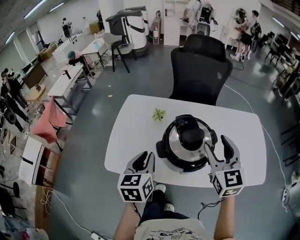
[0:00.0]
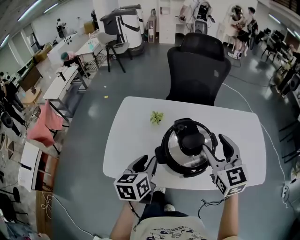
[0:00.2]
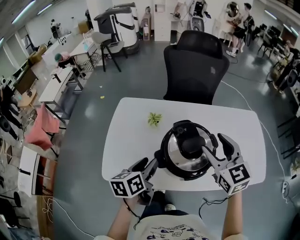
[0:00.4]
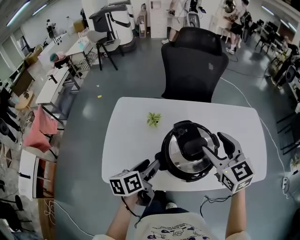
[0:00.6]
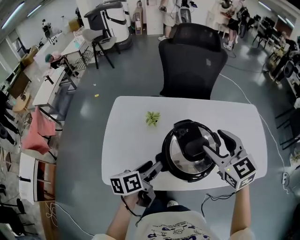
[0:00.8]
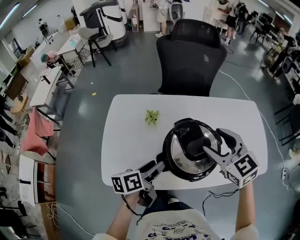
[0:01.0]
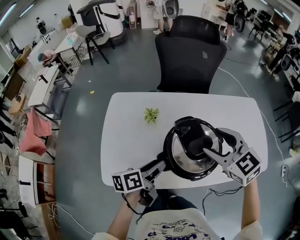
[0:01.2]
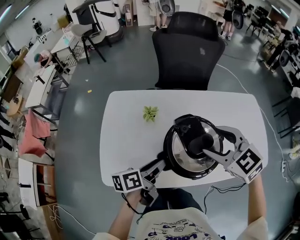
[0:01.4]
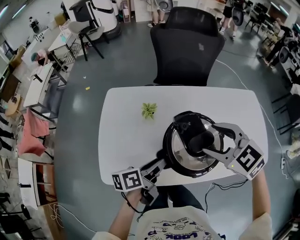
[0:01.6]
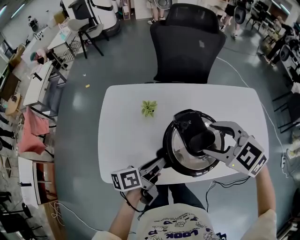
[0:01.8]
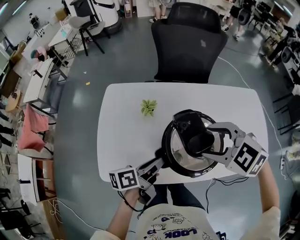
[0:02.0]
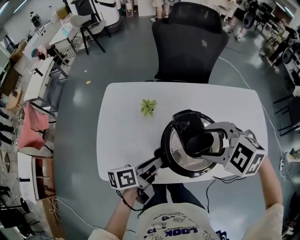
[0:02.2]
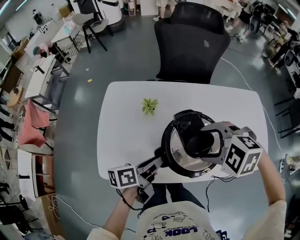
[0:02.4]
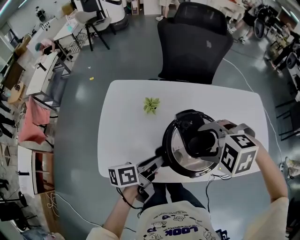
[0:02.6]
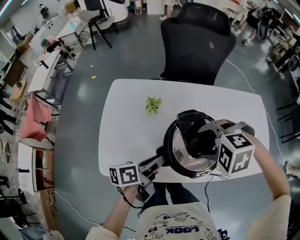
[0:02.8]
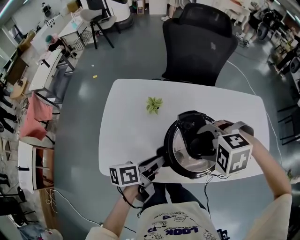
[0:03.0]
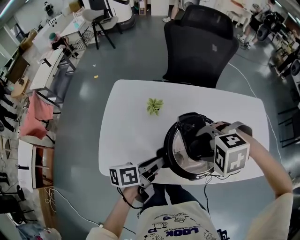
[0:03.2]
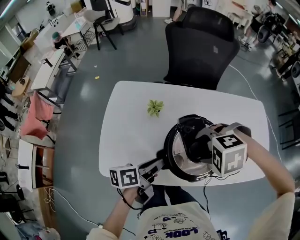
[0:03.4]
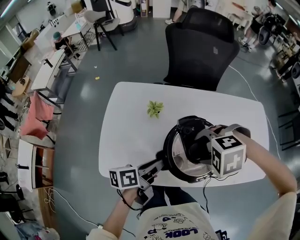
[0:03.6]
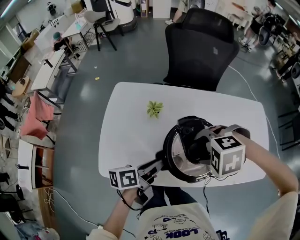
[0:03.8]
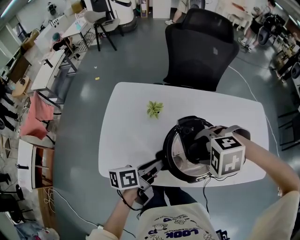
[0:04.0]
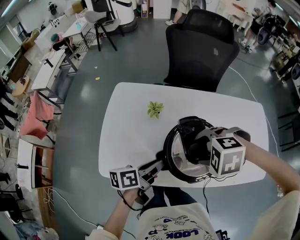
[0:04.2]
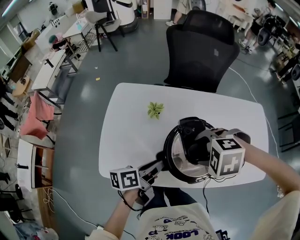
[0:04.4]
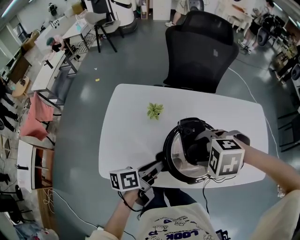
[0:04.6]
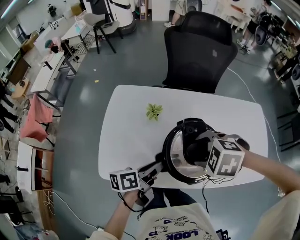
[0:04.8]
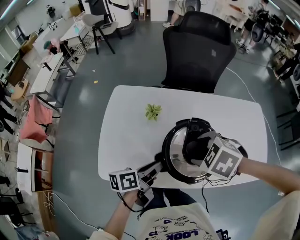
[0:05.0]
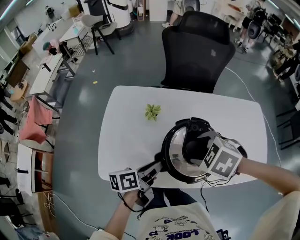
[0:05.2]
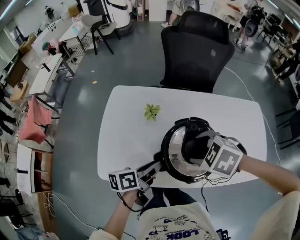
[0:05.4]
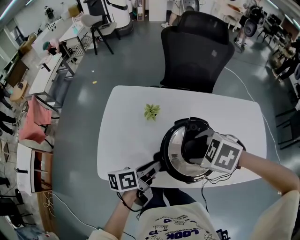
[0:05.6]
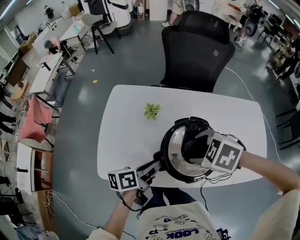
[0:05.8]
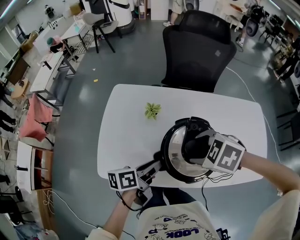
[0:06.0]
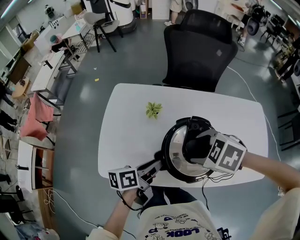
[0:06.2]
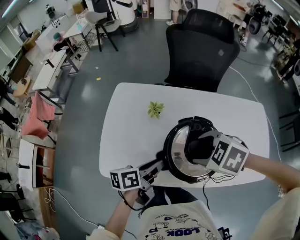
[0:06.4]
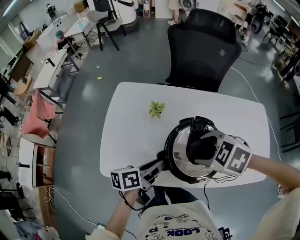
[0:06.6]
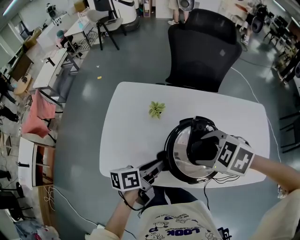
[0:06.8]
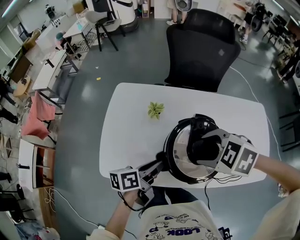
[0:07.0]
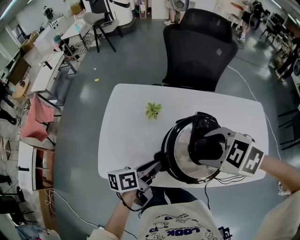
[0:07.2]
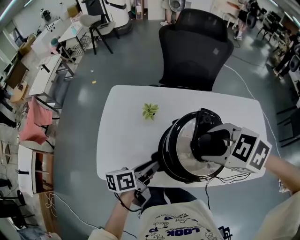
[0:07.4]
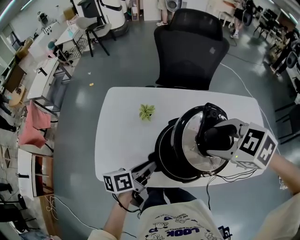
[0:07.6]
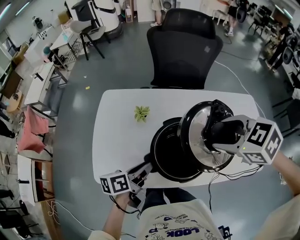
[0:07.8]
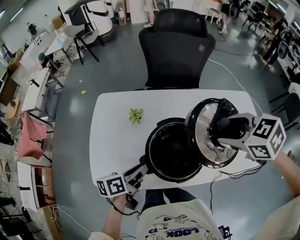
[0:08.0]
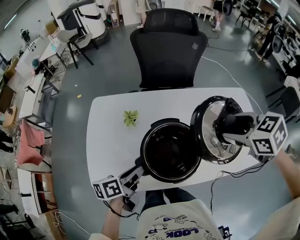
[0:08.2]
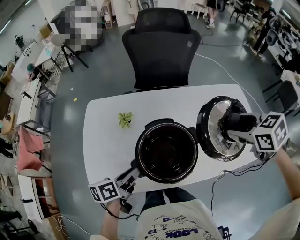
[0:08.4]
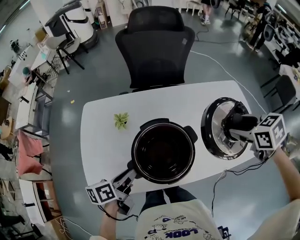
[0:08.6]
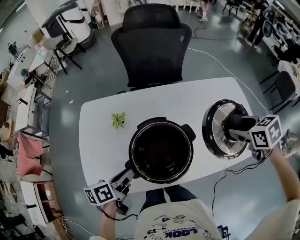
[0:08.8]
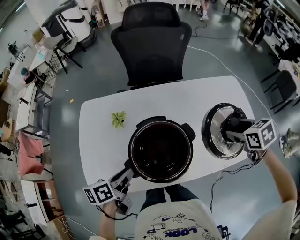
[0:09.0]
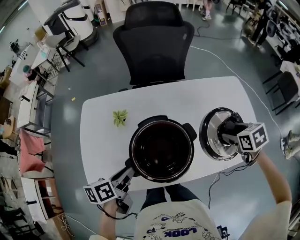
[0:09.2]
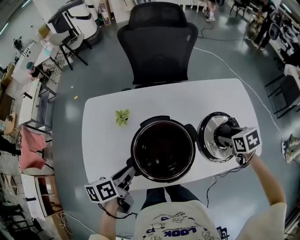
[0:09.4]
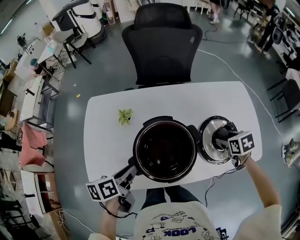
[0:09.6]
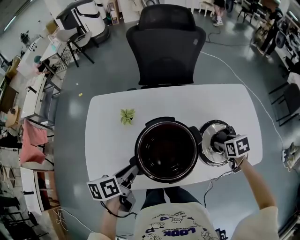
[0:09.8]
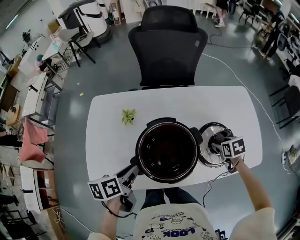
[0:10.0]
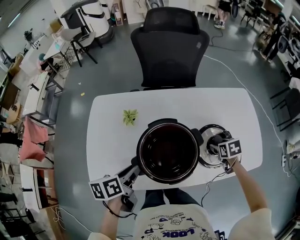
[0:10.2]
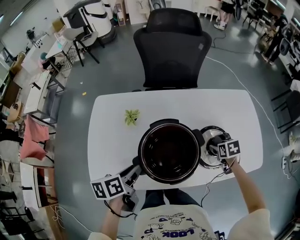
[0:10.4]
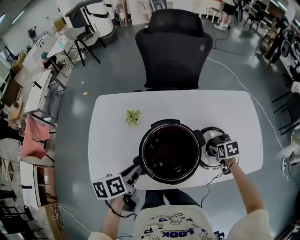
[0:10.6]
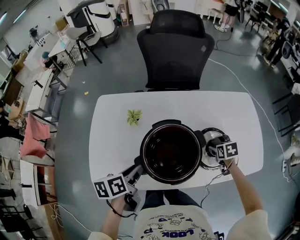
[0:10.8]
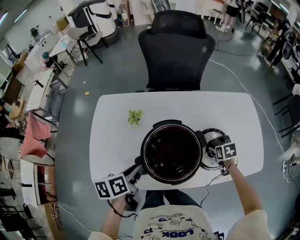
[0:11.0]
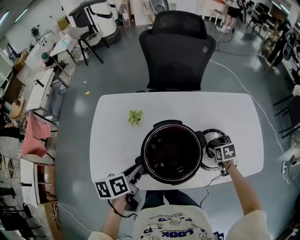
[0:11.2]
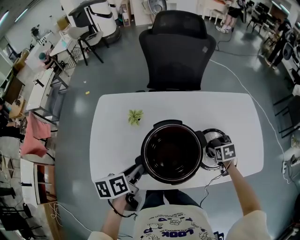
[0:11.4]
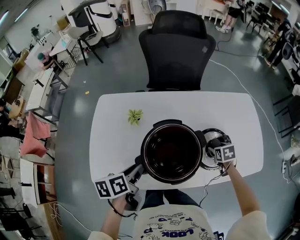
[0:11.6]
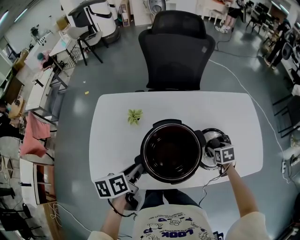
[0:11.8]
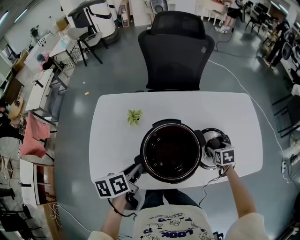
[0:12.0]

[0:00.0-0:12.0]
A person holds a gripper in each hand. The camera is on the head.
0:00.0 to 0:01.6: The left gripper travels downward and forward by roughly 15 cm, changes its angle by some 60 degrees, and opens up; the right gripper shifts some 10 cm forward, to the left and downward, and rotates about 40 degrees.
0:01.6 to 0:03.0: The right gripper heads downward, covering some 5 cm, and tips its fingers downward by approximately 30 degrees.
0:03.0 to 0:04.4: The grippers move only a little.
0:04.4 to 0:06.0: The right gripper turns by roughly 30 degrees.
0:06.0 to 0:07.6: The right gripper heads upward and to the right, covering about 10 cm.
0:07.6 to 0:09.0: The right gripper travels to the right by roughly 25 cm, and rolls clockwise, seen from behind, by roughly 40 degrees.
0:09.0 to 0:10.4: The right gripper heads downward, covering approximately 15 cm.
0:10.4 to 0:12.0: There are only small adjustments of the grippers.

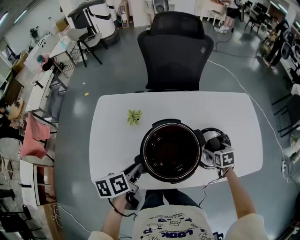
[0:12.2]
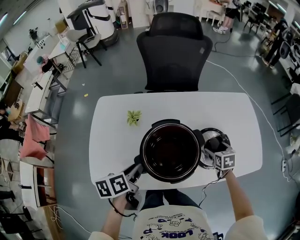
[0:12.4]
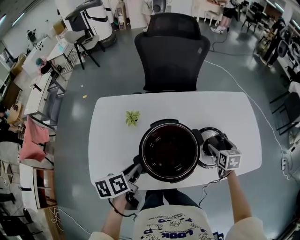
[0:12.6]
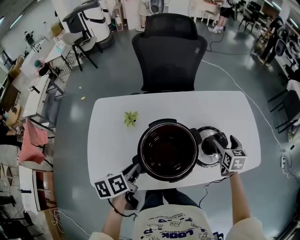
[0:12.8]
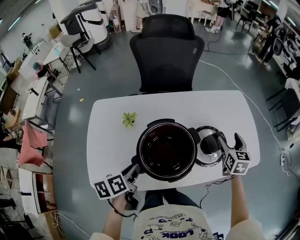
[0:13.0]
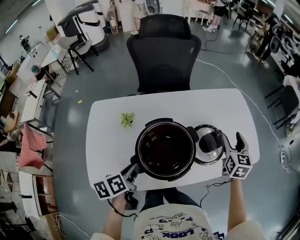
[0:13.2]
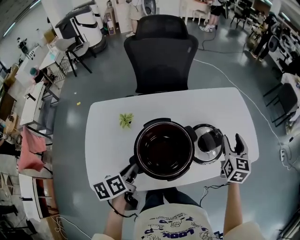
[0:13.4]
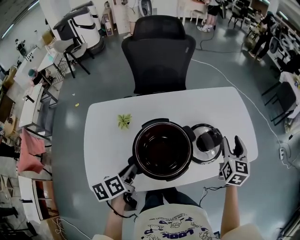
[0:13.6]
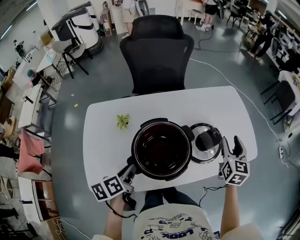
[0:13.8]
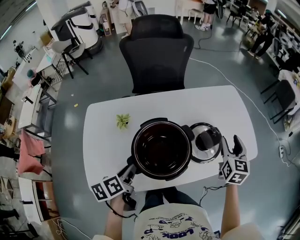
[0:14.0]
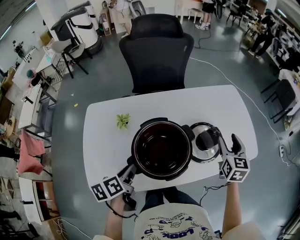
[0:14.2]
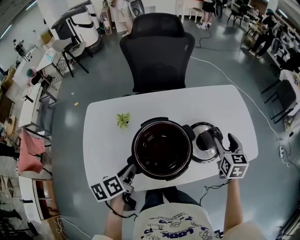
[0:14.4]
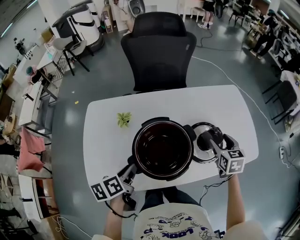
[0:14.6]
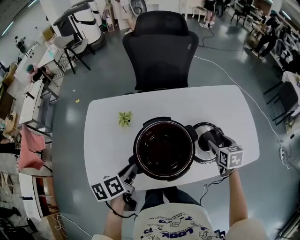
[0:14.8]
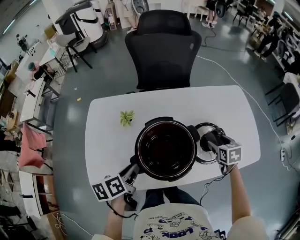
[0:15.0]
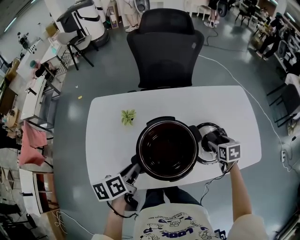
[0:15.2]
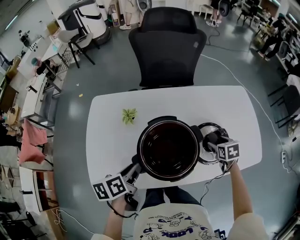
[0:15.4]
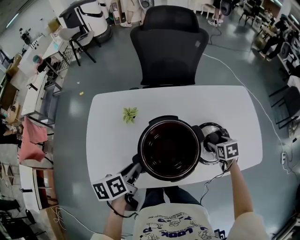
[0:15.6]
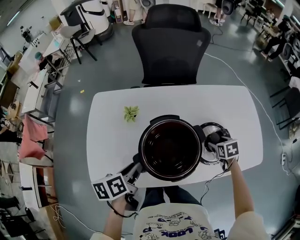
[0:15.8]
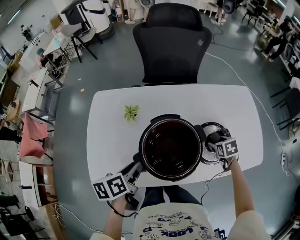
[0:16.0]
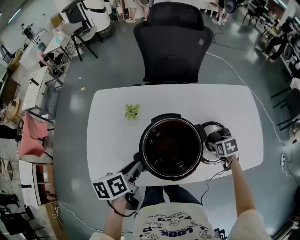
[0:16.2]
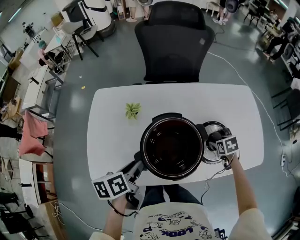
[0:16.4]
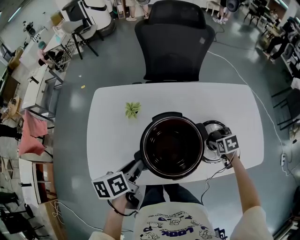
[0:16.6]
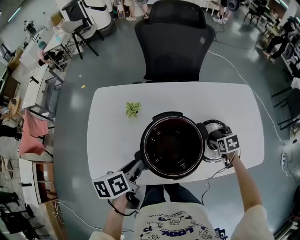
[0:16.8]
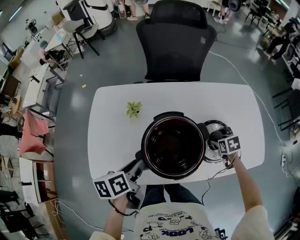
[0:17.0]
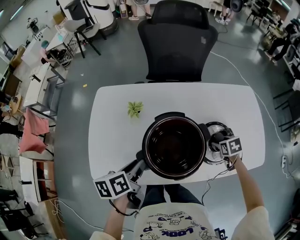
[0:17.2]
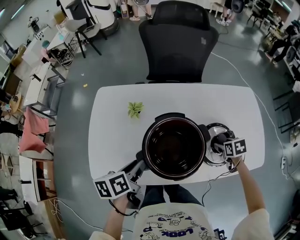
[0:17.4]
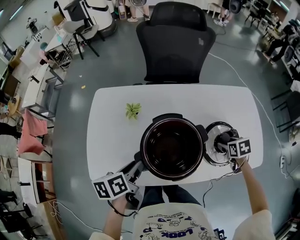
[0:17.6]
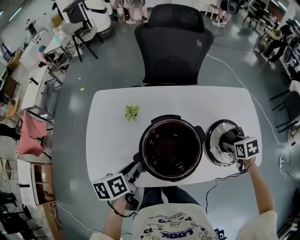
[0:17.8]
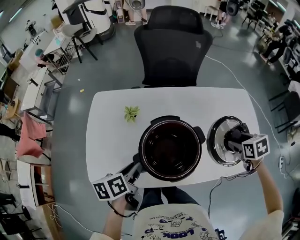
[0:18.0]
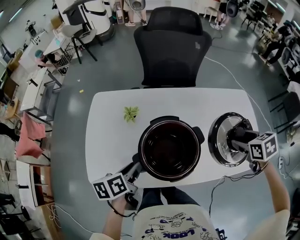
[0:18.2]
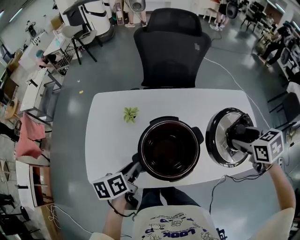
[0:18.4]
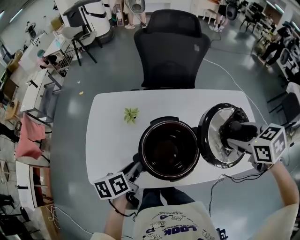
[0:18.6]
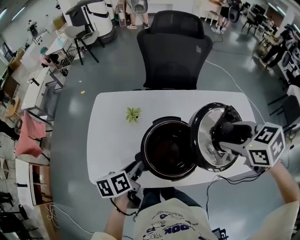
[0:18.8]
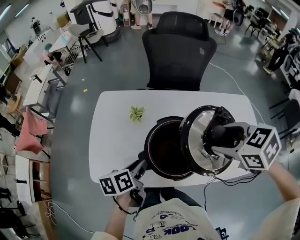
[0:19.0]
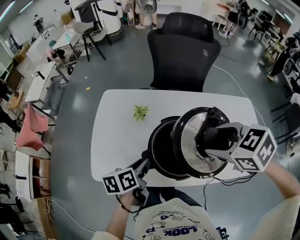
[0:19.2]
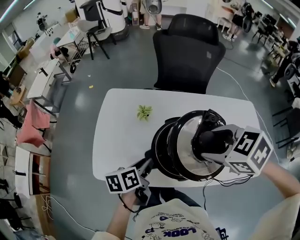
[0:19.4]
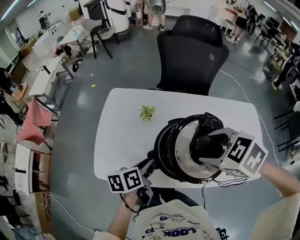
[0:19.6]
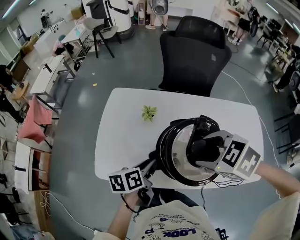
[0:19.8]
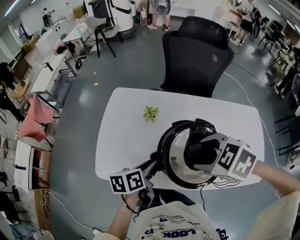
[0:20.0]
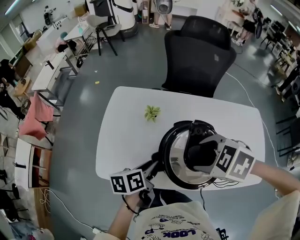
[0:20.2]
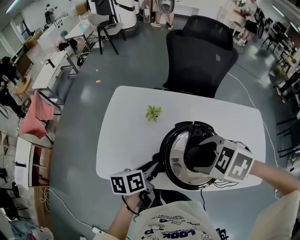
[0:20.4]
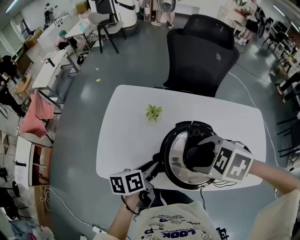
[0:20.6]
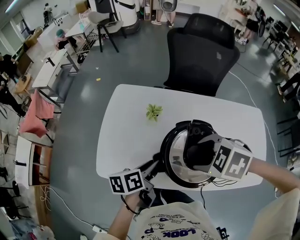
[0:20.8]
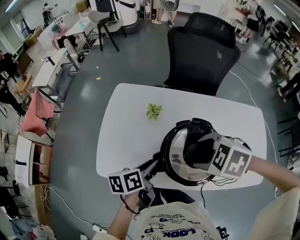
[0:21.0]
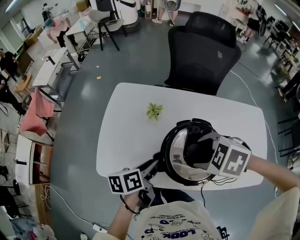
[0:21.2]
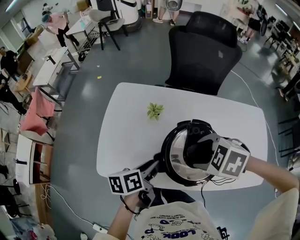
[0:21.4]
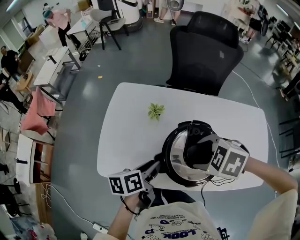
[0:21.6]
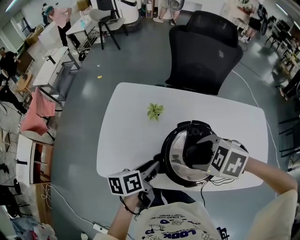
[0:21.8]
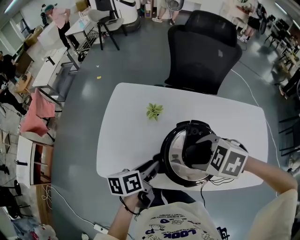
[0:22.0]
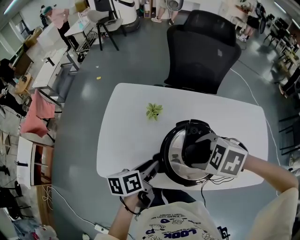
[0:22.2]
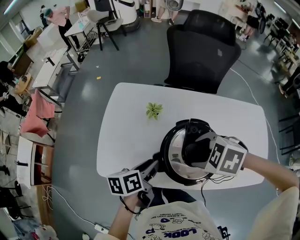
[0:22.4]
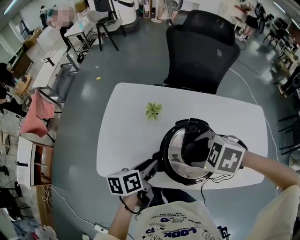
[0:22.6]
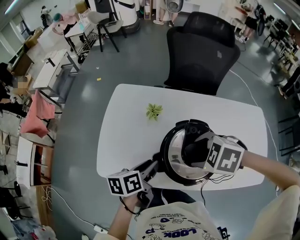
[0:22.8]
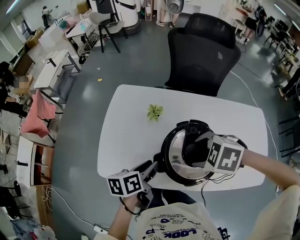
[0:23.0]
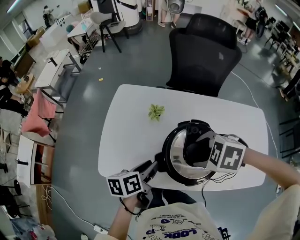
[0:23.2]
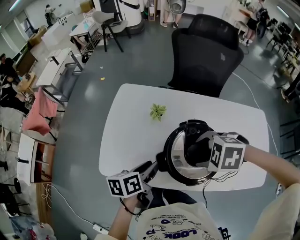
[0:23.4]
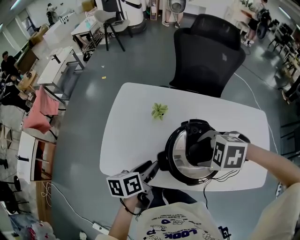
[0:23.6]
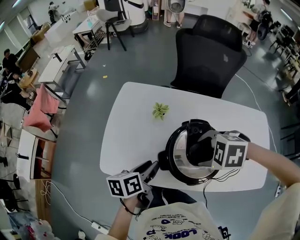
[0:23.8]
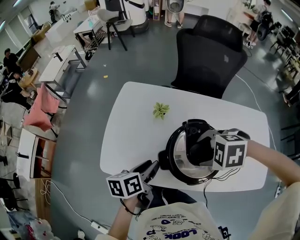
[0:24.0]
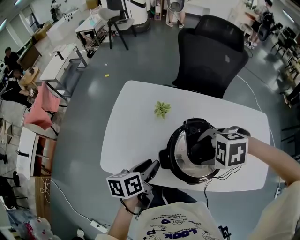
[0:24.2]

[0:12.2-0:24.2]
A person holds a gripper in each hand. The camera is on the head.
0:12.2 to 0:13.8: The right gripper travels upward by approximately 20 cm, tilts its fingers some 40 degrees upward, and closes up.
0:13.8 to 0:15.2: The right gripper goes roughly 15 cm downward, and angles its fingers downward, by some 40 degrees.
0:15.2 to 0:16.6: The grippers move only a little.
0:16.6 to 0:18.2: The right gripper goes approximately 20 cm upward.
0:18.2 to 0:19.8: The right gripper shifts about 30 cm to the left, and rotates around the line of its fingers by some 40 degrees, counterclockwise from behind.
0:19.8 to 0:21.2: The right gripper travels downward by roughly 5 cm.
0:21.2 to 0:22.6: The grippers move only a little.
0:22.6 to 0:24.2: The right gripper rotates roughly 20 degrees.
